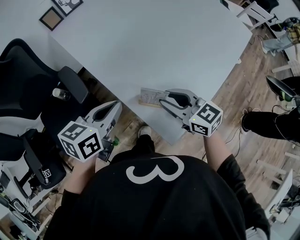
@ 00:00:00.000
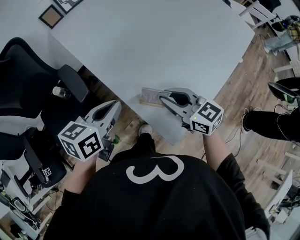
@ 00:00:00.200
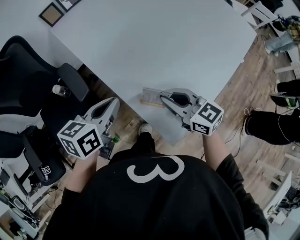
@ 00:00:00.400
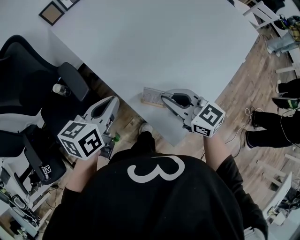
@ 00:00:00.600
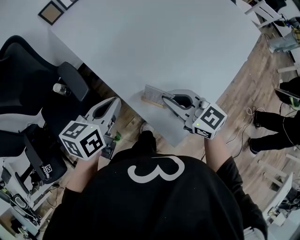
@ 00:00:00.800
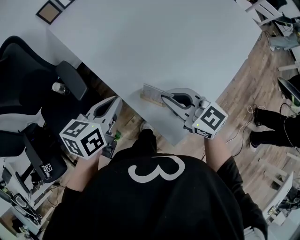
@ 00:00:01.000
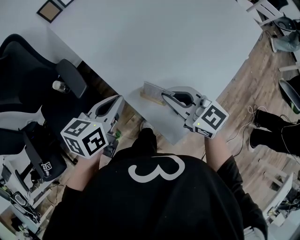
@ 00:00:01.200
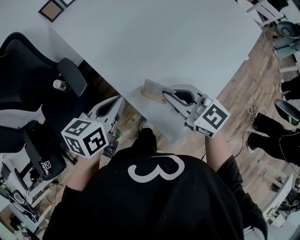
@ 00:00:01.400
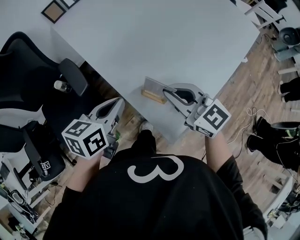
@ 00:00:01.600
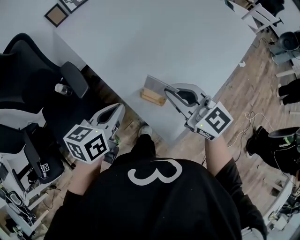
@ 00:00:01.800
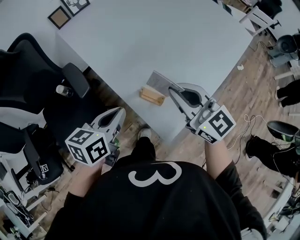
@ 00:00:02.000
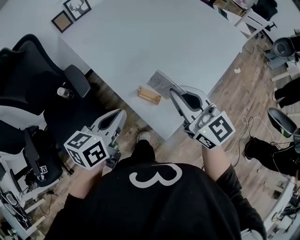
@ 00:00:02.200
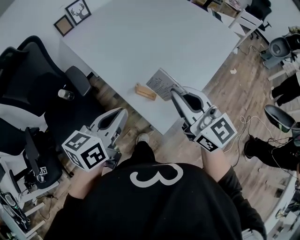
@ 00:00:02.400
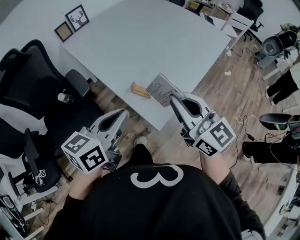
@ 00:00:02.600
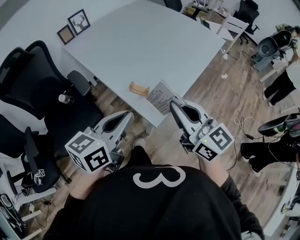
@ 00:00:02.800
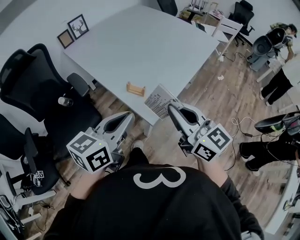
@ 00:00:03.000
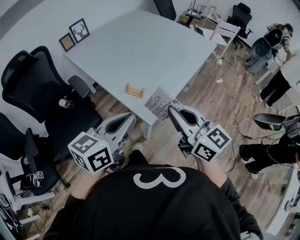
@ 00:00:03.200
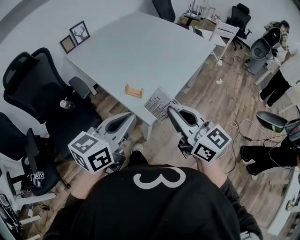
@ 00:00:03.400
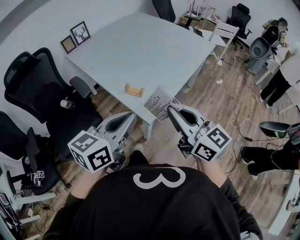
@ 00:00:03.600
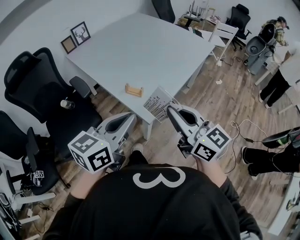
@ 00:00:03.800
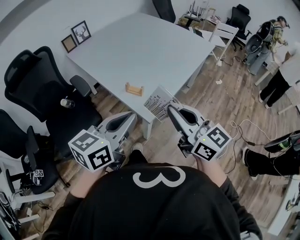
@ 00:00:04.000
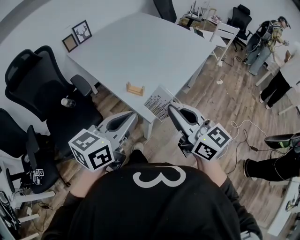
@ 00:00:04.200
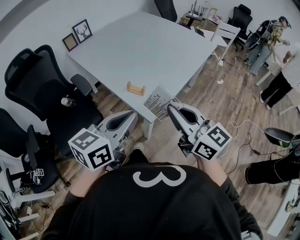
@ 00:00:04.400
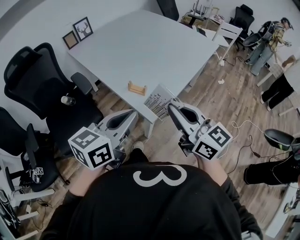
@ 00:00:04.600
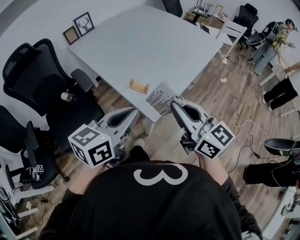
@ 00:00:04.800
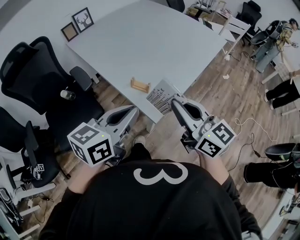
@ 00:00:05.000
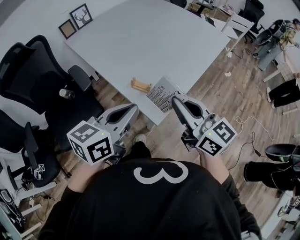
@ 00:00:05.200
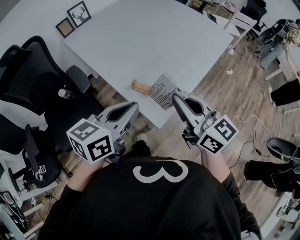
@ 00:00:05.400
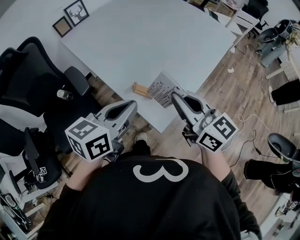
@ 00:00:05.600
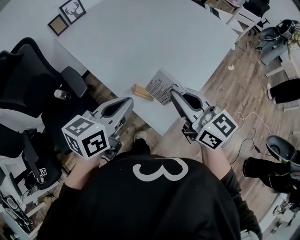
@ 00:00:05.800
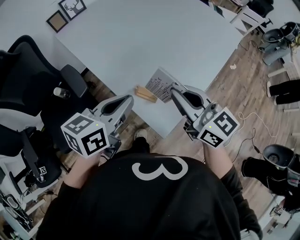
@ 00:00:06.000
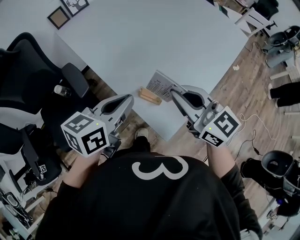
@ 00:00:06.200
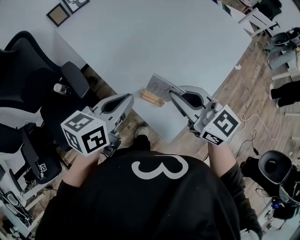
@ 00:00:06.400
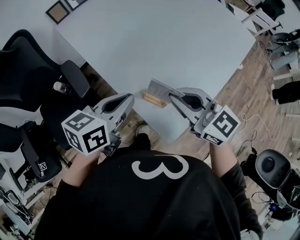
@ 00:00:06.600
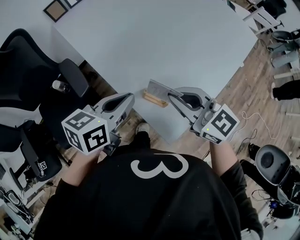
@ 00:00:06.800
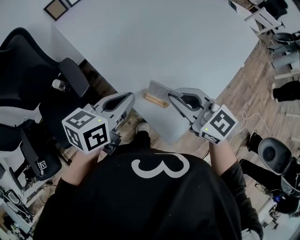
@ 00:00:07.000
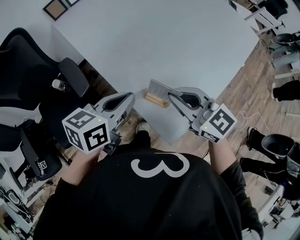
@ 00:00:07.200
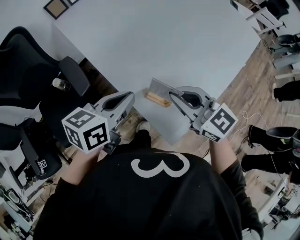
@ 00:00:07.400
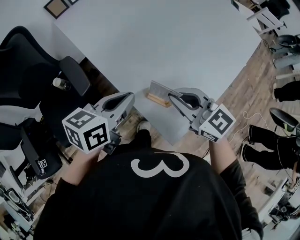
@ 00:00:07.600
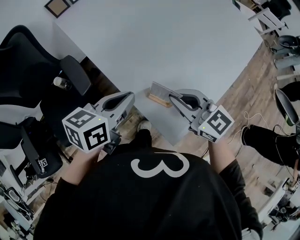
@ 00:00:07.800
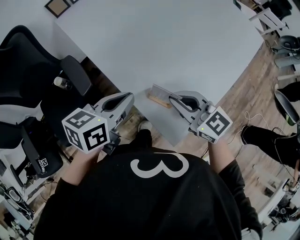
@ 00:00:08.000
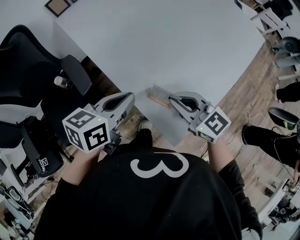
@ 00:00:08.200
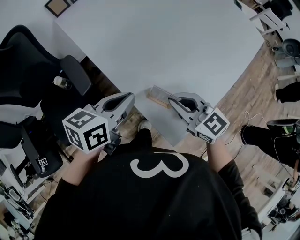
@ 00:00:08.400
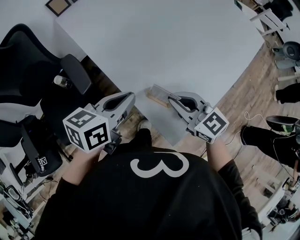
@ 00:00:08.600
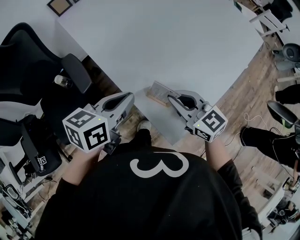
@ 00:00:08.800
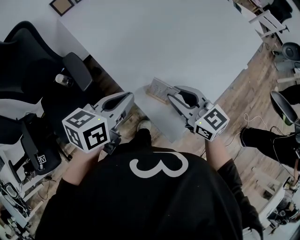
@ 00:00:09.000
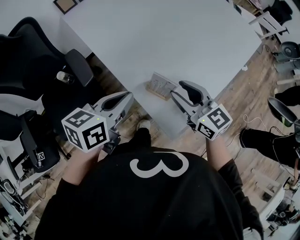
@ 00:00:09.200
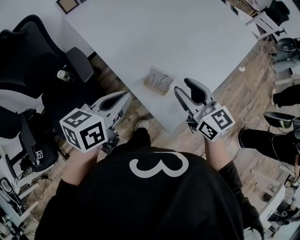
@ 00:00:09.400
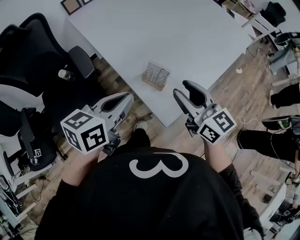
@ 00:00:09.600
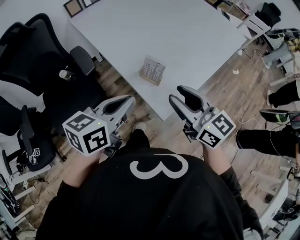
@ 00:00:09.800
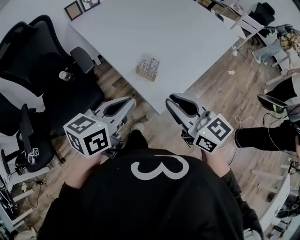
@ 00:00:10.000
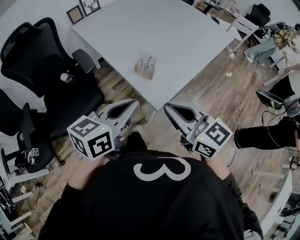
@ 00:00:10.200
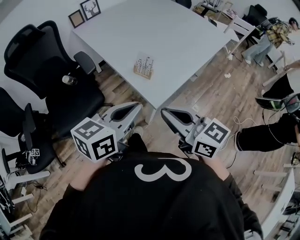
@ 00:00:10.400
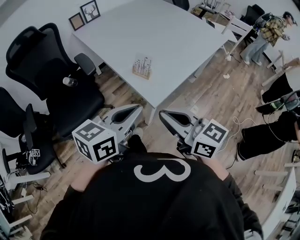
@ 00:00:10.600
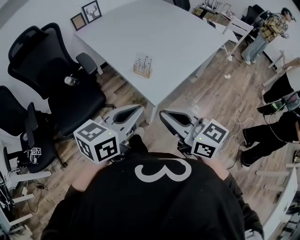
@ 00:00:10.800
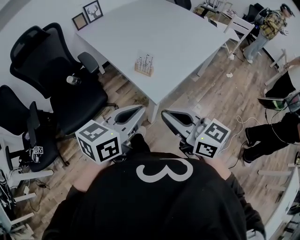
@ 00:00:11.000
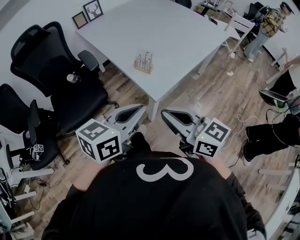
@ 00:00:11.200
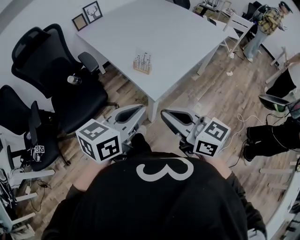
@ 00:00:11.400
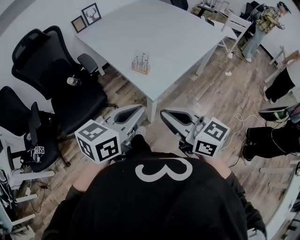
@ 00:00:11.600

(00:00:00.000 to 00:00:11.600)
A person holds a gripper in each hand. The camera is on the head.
00:00:00.000 - 00:00:01.400: The right gripper closes.
00:00:01.400 - 00:00:02.800: Both grippers move backward and upward, some 25 cm. The left gripper rotates about 20 degrees. The right gripper turns by about 20 degrees.
00:00:02.800 - 00:00:04.400: The left gripper ends up approximately 5 cm from where it was; the right gripper moves backward, about 5 cm.
00:00:04.400 - 00:00:05.800: Both grippers travel together forward, approximately 15 cm.
00:00:05.800 - 00:00:07.200: The left gripper shifts about 10 cm forward and downward, while the right gripper shifts approximately 10 cm downward, forward and to the left, and swivels about 20 degrees.
00:00:07.200 - 00:00:08.800: The right gripper goes some 5 cm downward.
00:00:08.800 - 00:00:10.200: The two grippers go about 25 cm backward and upward. The right gripper opens, then closes again.
00:00:10.200 - 00:00:11.600: The grippers both shift backward by some 10 cm.

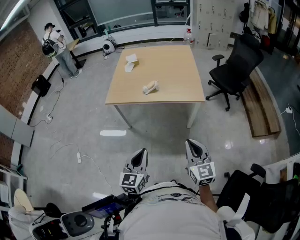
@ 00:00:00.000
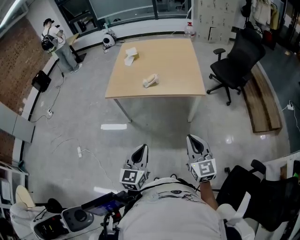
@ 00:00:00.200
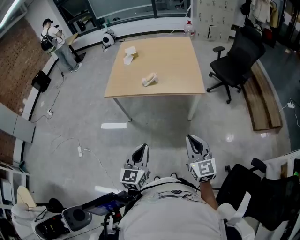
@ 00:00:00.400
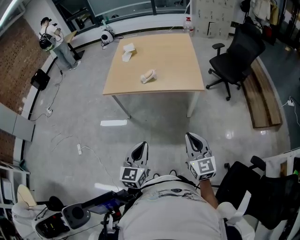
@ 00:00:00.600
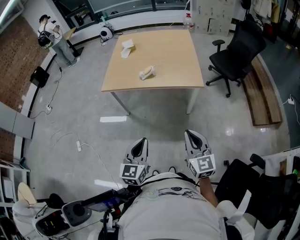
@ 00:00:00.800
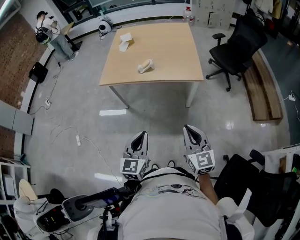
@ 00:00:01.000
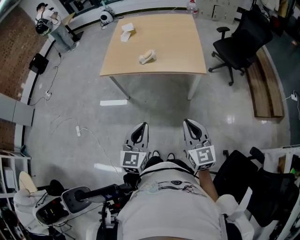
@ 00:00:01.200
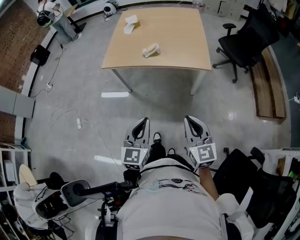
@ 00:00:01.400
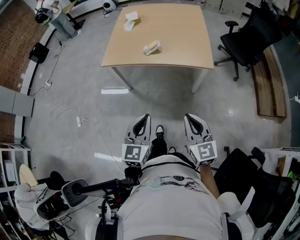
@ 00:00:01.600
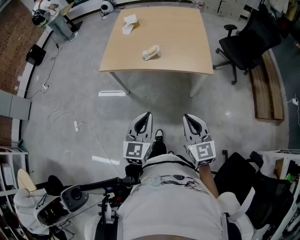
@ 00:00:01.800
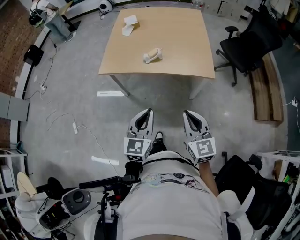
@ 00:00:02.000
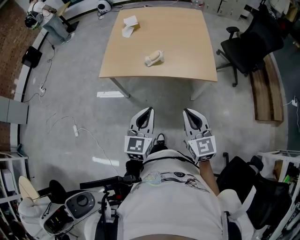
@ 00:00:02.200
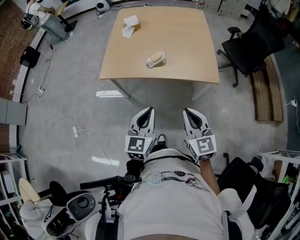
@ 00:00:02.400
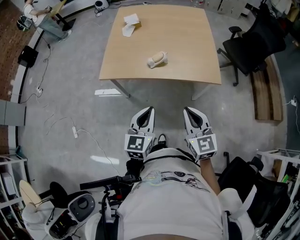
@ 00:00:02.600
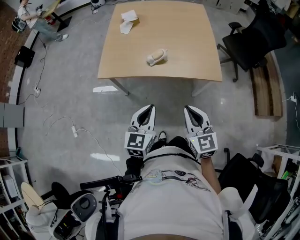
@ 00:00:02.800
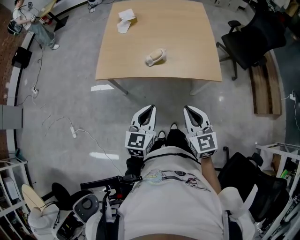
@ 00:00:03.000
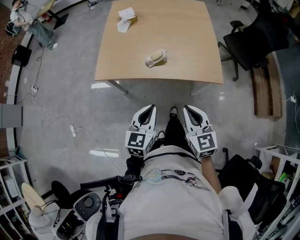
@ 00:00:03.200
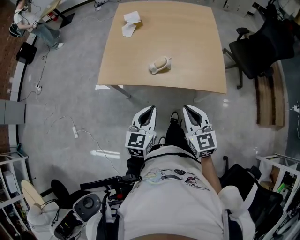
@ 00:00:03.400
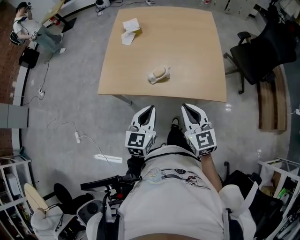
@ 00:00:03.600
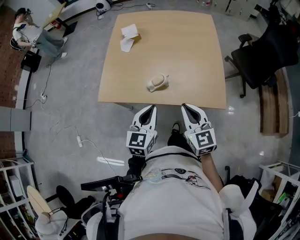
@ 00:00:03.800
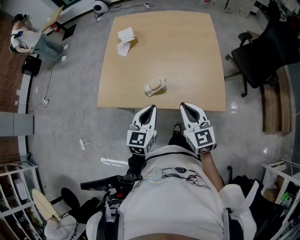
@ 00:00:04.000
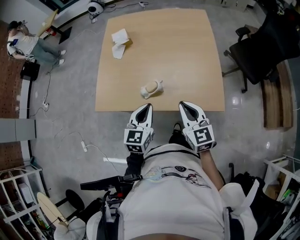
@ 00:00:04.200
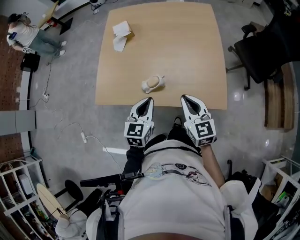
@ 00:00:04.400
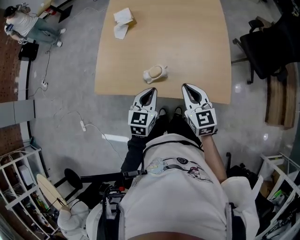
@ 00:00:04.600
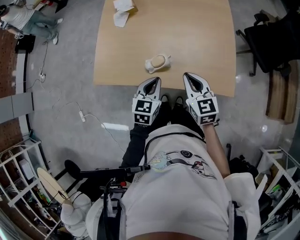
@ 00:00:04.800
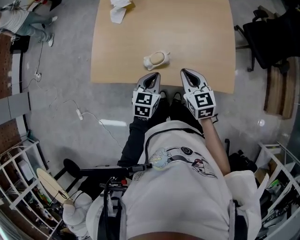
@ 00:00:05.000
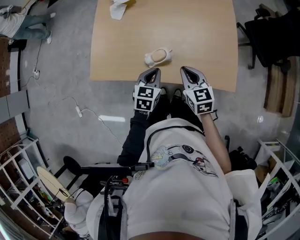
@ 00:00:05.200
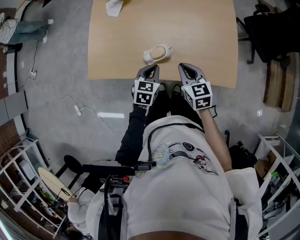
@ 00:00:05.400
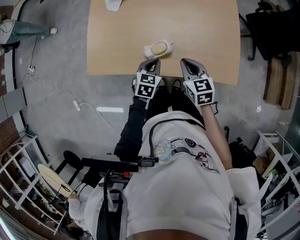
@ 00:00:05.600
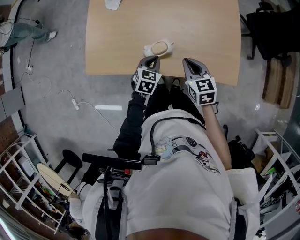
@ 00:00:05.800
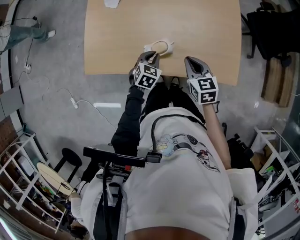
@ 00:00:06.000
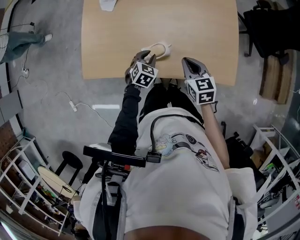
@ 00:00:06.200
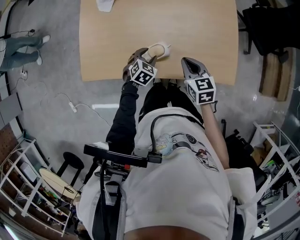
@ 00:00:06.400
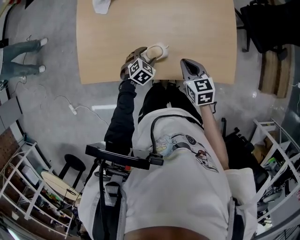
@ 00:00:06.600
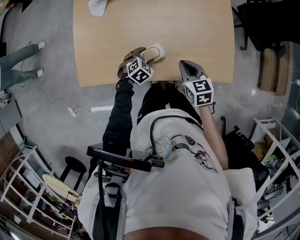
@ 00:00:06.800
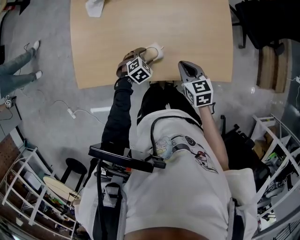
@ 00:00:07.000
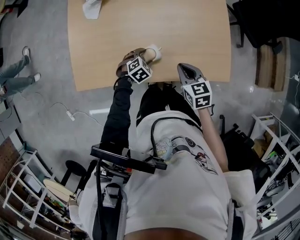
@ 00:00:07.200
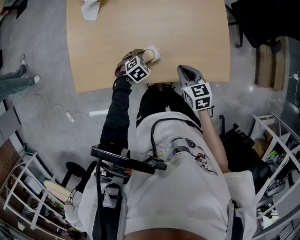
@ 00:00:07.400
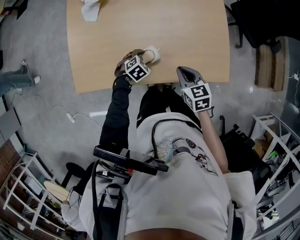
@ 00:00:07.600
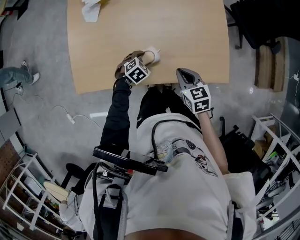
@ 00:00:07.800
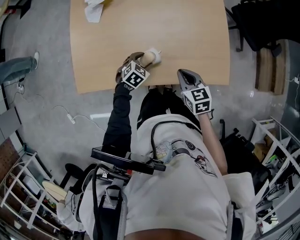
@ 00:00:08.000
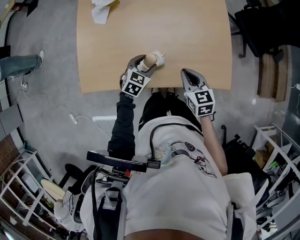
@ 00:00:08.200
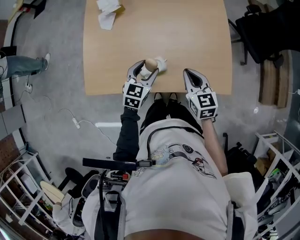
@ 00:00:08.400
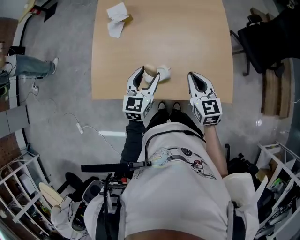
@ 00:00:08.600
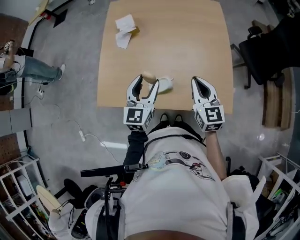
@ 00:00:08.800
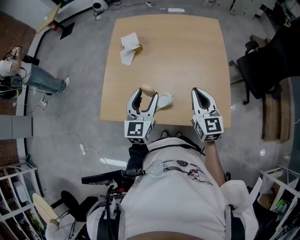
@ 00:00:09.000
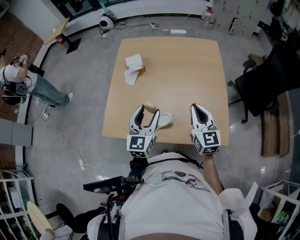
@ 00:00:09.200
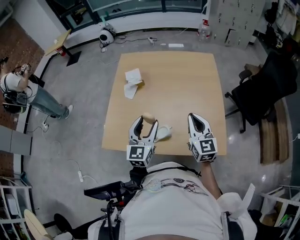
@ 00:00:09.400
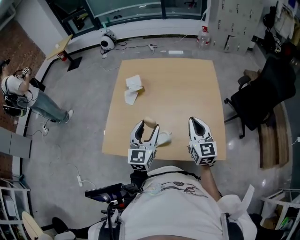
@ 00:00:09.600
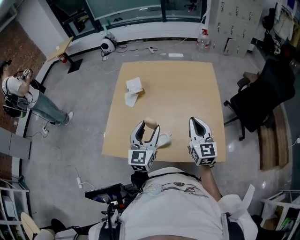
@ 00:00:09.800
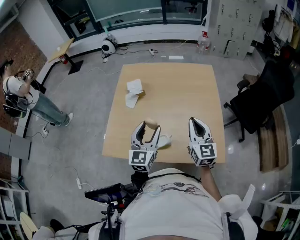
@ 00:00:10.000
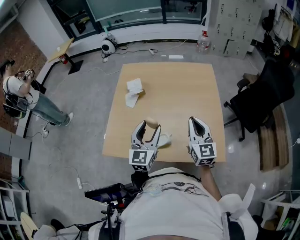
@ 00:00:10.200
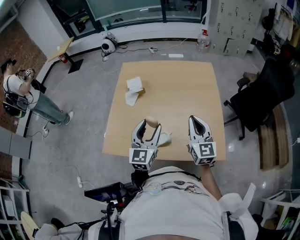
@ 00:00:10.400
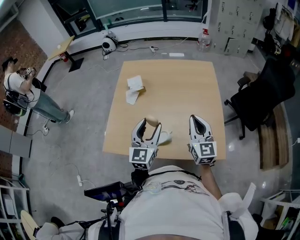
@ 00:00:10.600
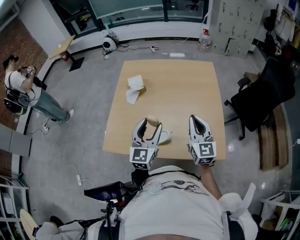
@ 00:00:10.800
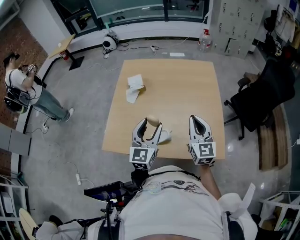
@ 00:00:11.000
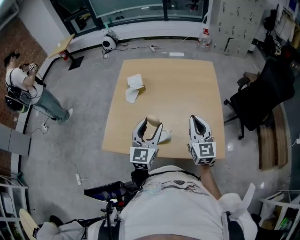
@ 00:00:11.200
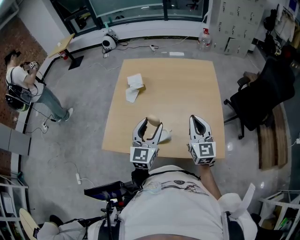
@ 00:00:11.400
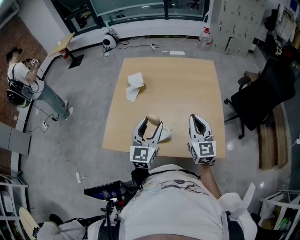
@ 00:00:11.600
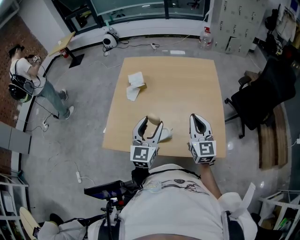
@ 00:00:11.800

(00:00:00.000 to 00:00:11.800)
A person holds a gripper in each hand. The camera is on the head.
00:00:00.000 - 00:00:01.400: The left gripper moves about 5 cm.
00:00:01.400 - 00:00:03.000: The left gripper shifts roughly 25 cm forward; the right gripper is displaced forward and to the left by approximately 25 cm.
00:00:03.000 - 00:00:04.400: Both grippers travel together forward, about 25 cm.
00:00:04.400 - 00:00:06.000: The grippers both shift downward and forward by some 20 cm. The right gripper changes its angle by roughly 20 degrees, while the left gripper changes its angle by some 30 degrees.
00:00:06.000 - 00:00:07.400: The left gripper goes some 10 cm downward, turns by roughly 30 degrees, and opens.
00:00:07.400 - 00:00:08.800: The left gripper shifts about 30 cm upward, and points its fingers some 50 degrees further upward; the right gripper moves upward, approximately 15 cm, and turns by about 30 degrees.
00:00:08.800 - 00:00:10.400: Both grippers move upward, roughly 10 cm.
00:00:10.400 - 00:00:11.800: The two grippers keep their place.
